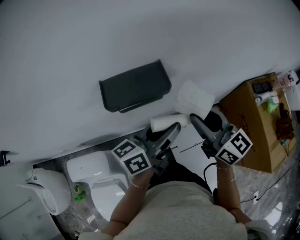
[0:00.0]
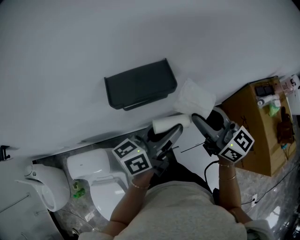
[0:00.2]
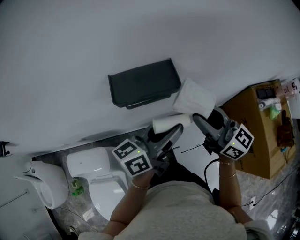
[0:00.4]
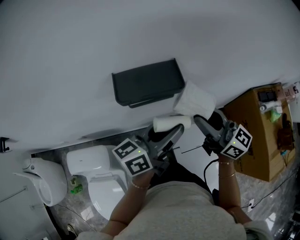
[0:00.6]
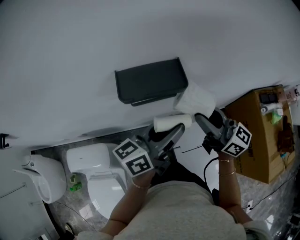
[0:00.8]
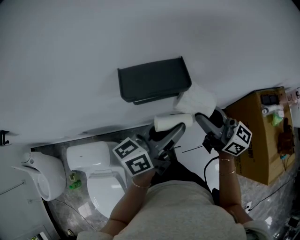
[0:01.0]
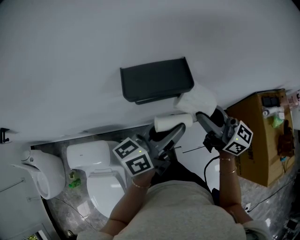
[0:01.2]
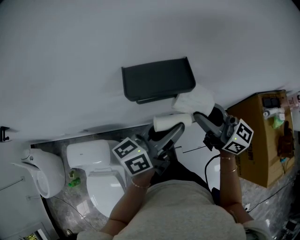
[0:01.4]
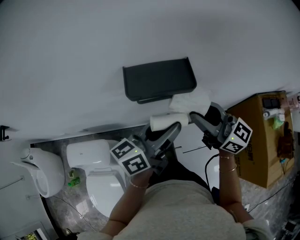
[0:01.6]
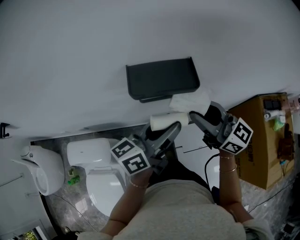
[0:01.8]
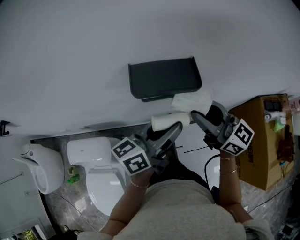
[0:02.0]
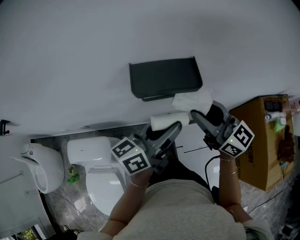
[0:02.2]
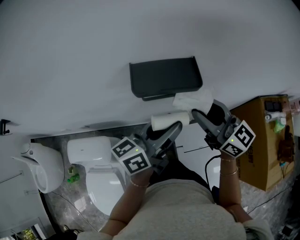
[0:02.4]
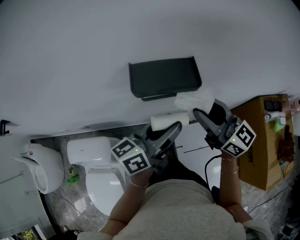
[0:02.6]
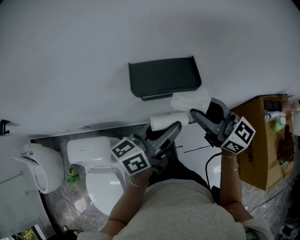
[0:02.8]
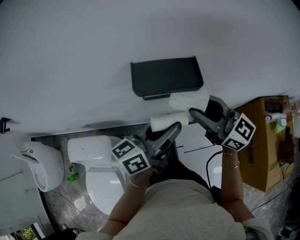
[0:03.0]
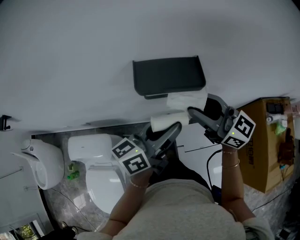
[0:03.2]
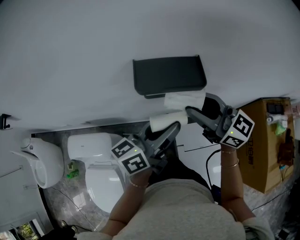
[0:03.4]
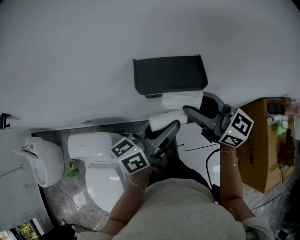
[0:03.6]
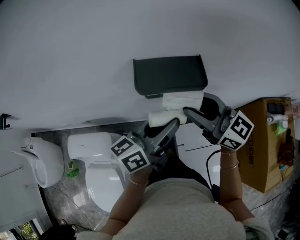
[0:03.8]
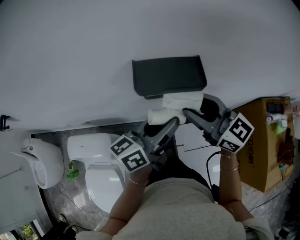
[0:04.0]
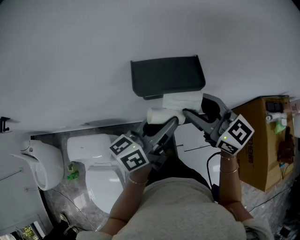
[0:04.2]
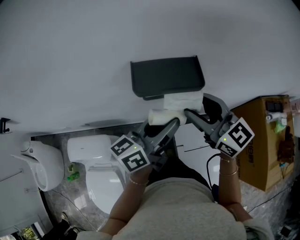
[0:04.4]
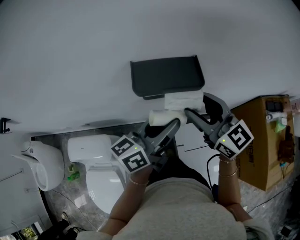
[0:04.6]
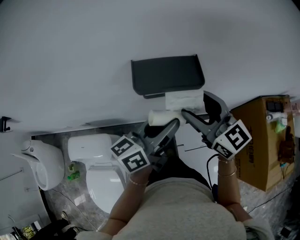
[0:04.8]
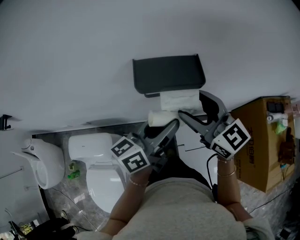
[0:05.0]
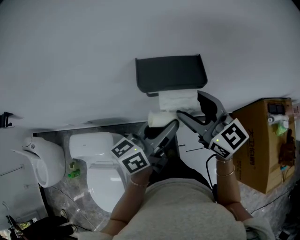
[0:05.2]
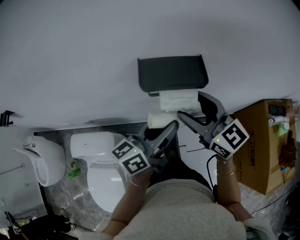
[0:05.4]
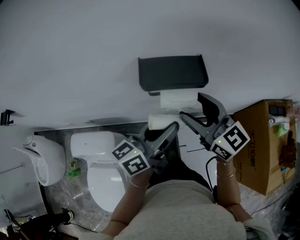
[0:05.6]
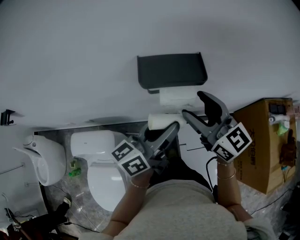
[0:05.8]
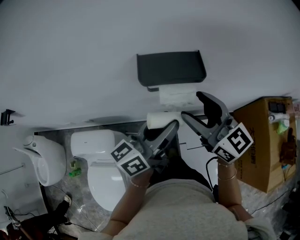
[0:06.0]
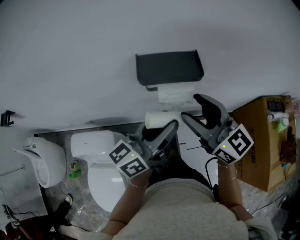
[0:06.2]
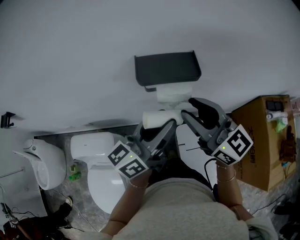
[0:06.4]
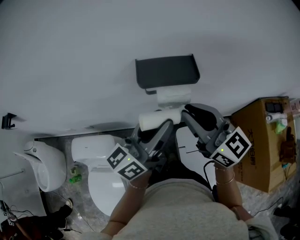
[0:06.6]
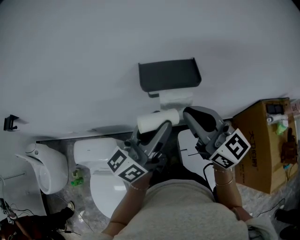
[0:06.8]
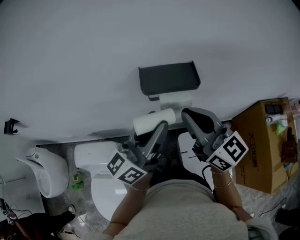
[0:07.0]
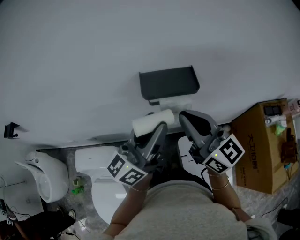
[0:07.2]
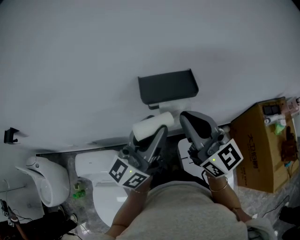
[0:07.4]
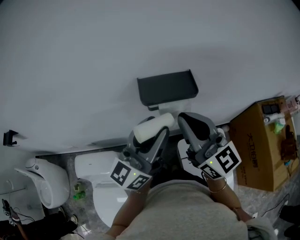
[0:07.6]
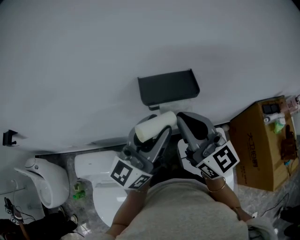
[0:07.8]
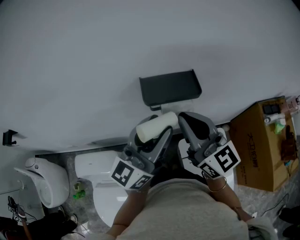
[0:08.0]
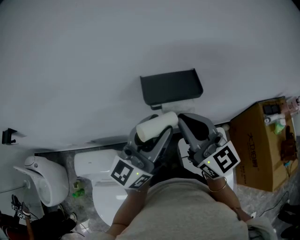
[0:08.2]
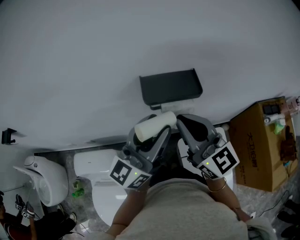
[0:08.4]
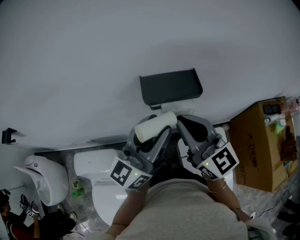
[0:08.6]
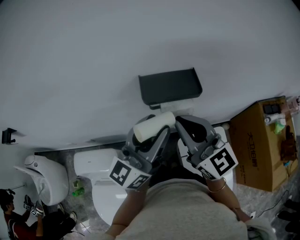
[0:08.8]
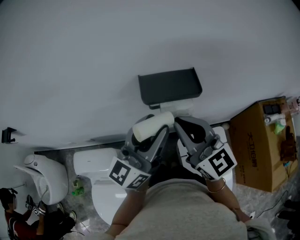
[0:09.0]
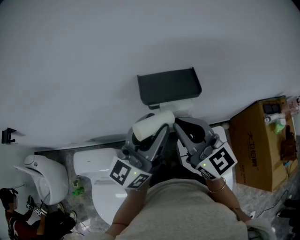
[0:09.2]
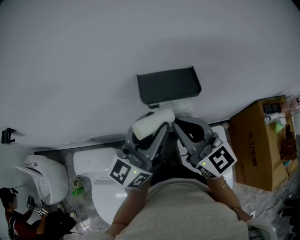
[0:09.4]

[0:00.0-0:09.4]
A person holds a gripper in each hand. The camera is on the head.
0:00.0 to 0:01.6: Both grippers move to the left, about 5 cm. The right gripper turns by roughly 20 degrees.
0:01.6 to 0:03.2: The grippers move only a little.
0:03.2 to 0:04.8: The right gripper opens up.
0:04.8 to 0:06.2: The left gripper shifts by about 5 cm; the right gripper ends up roughly 5 cm from where it was.
0:06.2 to 0:07.8: The right gripper moves roughly 5 cm, and closes its fingers. The left gripper moves upward, about 5 cm, and turns by some 30 degrees.
0:07.8 to 0:09.4: The grippers stay close to where they were, moving slightly.

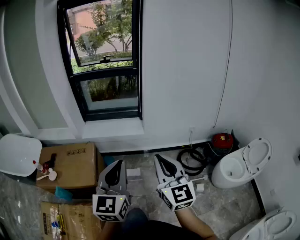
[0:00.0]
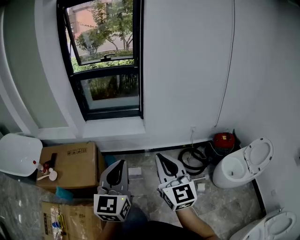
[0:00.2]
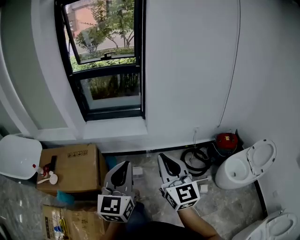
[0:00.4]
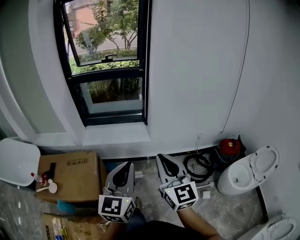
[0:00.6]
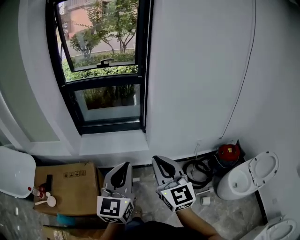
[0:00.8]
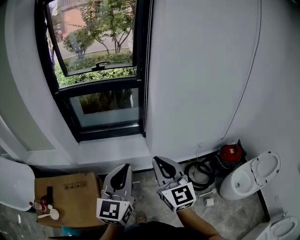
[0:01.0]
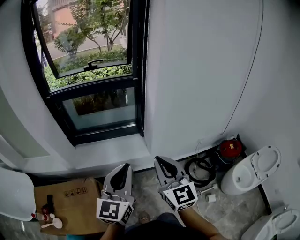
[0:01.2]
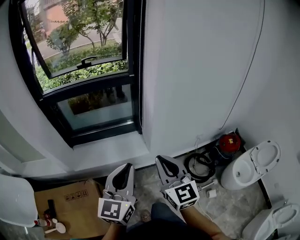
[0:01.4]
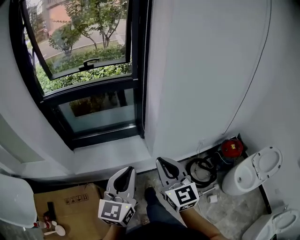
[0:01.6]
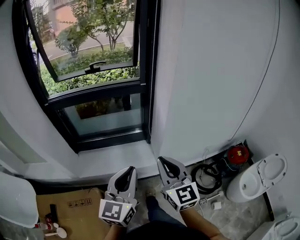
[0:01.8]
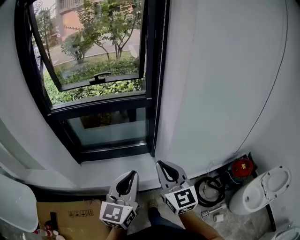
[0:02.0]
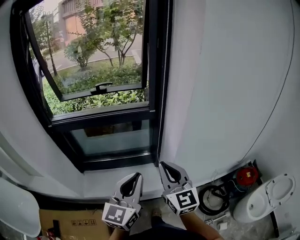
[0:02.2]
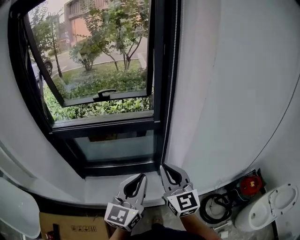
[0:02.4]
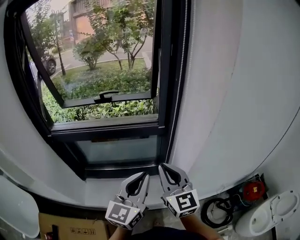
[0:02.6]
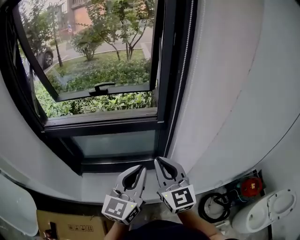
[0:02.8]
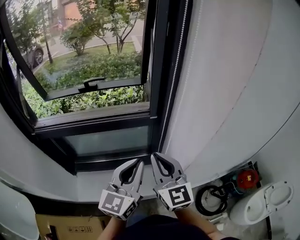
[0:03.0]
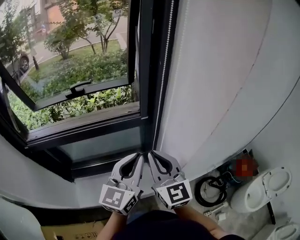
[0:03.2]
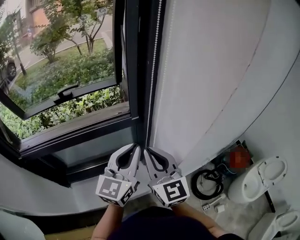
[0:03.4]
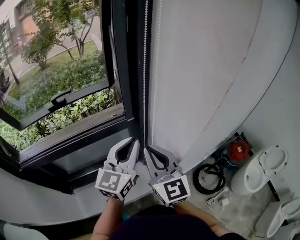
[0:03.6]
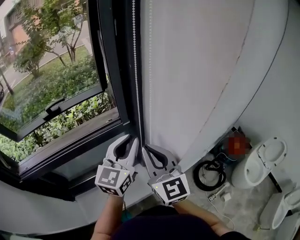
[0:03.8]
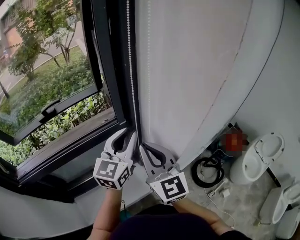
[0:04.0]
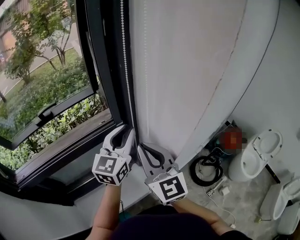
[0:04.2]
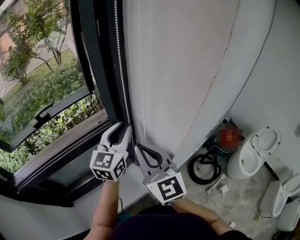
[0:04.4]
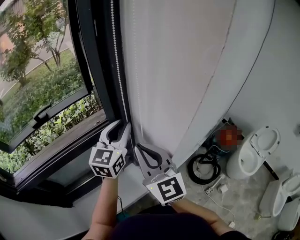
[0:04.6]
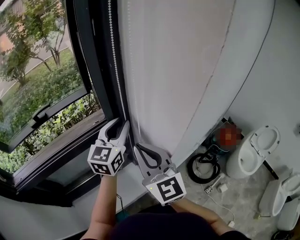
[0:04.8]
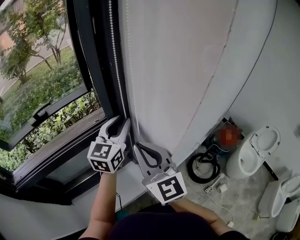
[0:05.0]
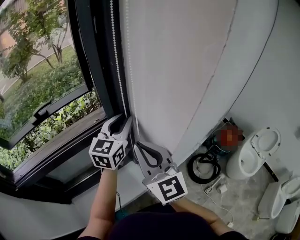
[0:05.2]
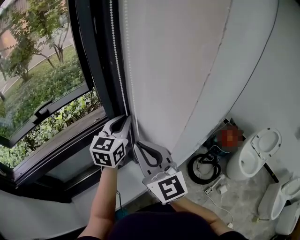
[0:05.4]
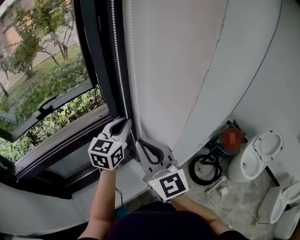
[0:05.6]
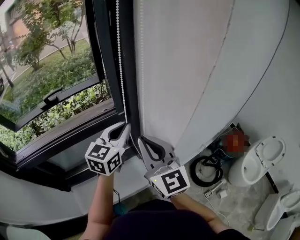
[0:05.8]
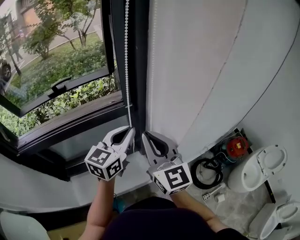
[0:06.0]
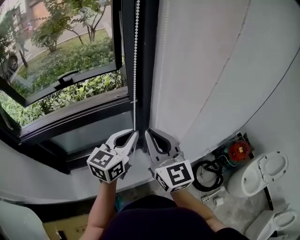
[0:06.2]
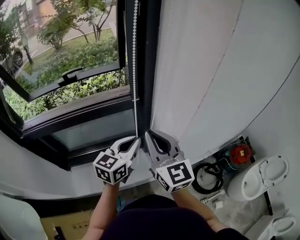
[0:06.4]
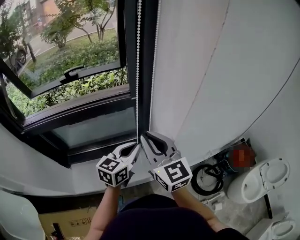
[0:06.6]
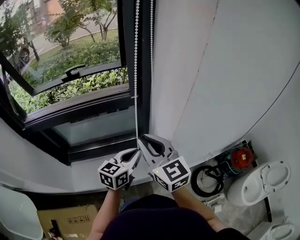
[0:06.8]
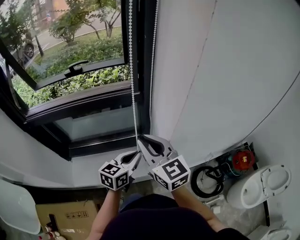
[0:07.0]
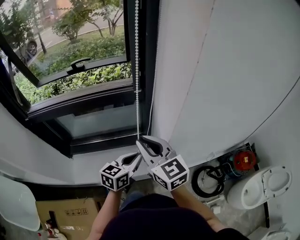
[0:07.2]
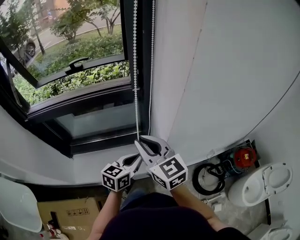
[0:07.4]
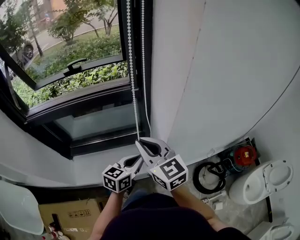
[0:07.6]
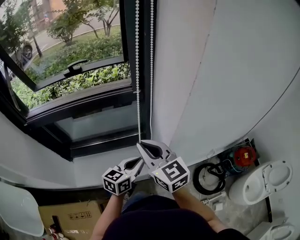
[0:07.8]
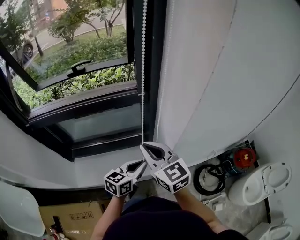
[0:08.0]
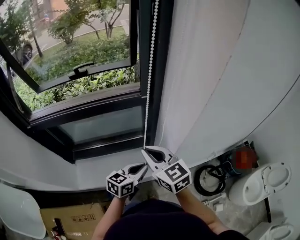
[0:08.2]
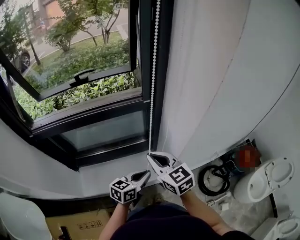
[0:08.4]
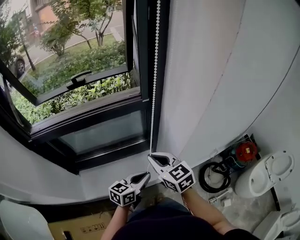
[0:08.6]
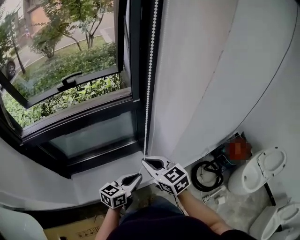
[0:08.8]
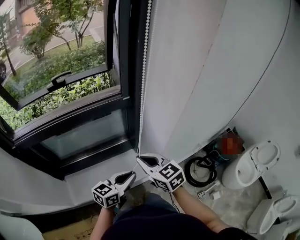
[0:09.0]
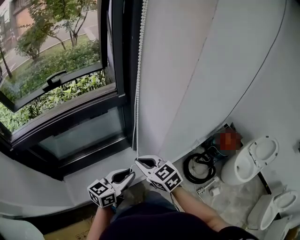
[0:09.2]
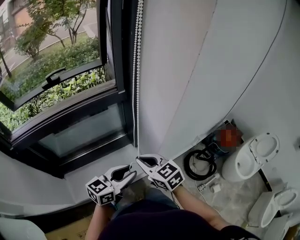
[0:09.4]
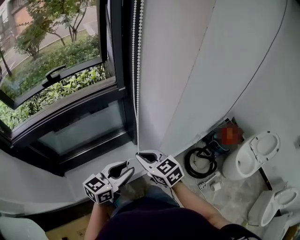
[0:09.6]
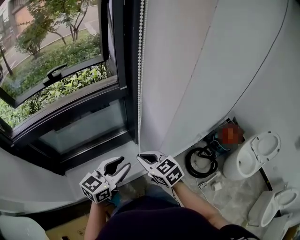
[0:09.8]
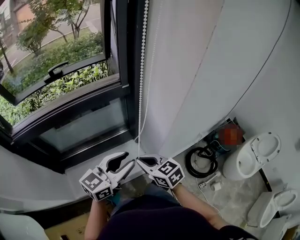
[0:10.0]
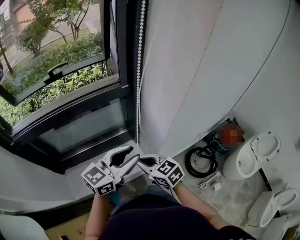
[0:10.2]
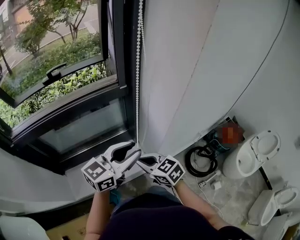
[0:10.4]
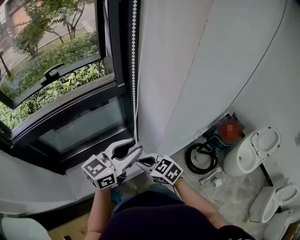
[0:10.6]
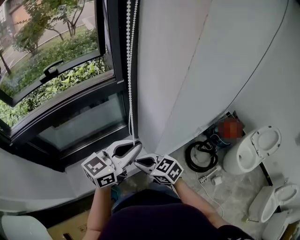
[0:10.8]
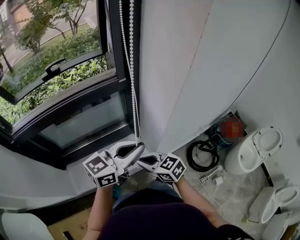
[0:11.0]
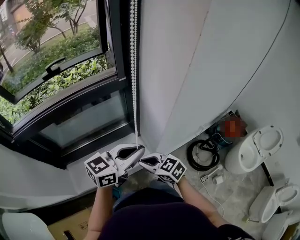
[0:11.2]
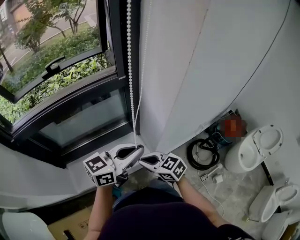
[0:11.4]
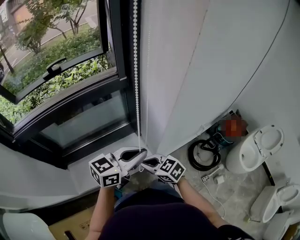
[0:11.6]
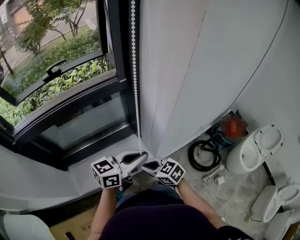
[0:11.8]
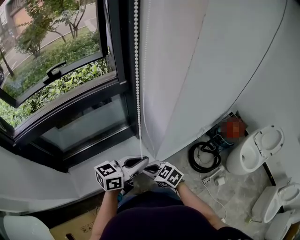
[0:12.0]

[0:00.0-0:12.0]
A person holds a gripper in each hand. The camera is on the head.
0:00.0 to 0:01.6: Both grippers are carried forward, about 40 cm.
0:01.6 to 0:03.0: The grippers both shift forward by approximately 35 cm.
0:03.0 to 0:04.4: The right gripper heads forward, covering roughly 5 cm. Meanwhile the left gripper is displaced forward by about 20 cm, and rotates about 20 degrees.
0:04.4 to 0:06.0: The left gripper moves backward, some 5 cm.
0:06.0 to 0:07.6: The left gripper goes roughly 20 cm downward and backward, and swivels roughly 20 degrees; the right gripper shifts roughly 10 cm downward and backward, and changes its angle by roughly 30 degrees.
0:07.6 to 0:09.0: The right gripper goes about 10 cm downward, while the left gripper is displaced to the left by roughly 5 cm.
0:09.0 to 0:10.4: The right gripper goes approximately 5 cm downward; the left gripper moves upward, some 15 cm, and opens its fingers.
0:10.4 to 0:12.0: Both grippers travel together downward, approximately 10 cm. The left gripper closes up.

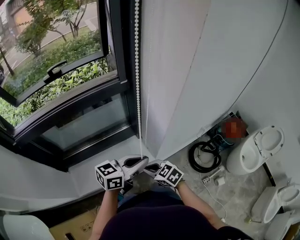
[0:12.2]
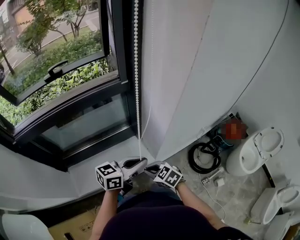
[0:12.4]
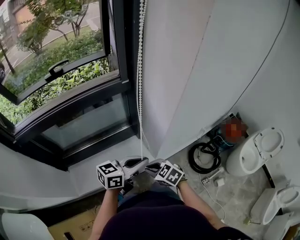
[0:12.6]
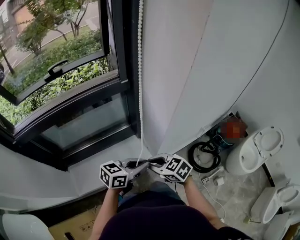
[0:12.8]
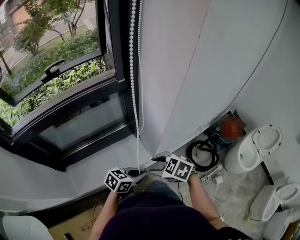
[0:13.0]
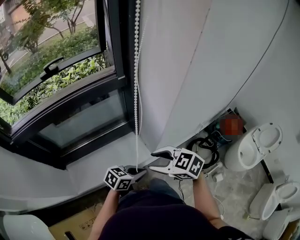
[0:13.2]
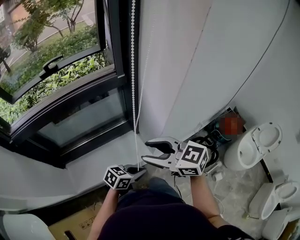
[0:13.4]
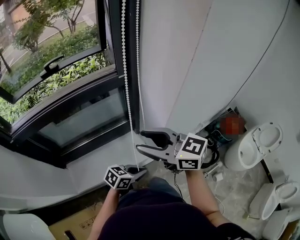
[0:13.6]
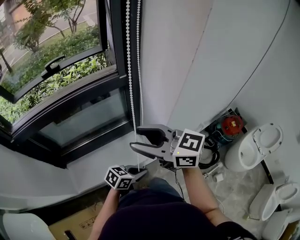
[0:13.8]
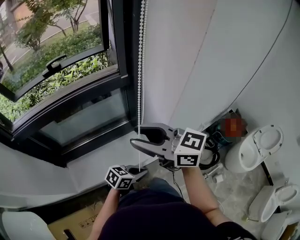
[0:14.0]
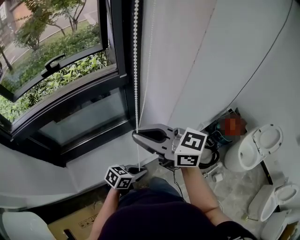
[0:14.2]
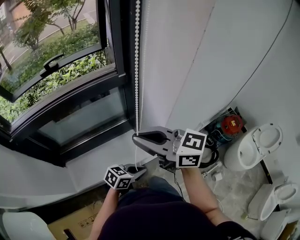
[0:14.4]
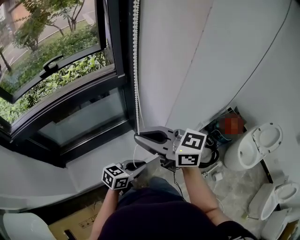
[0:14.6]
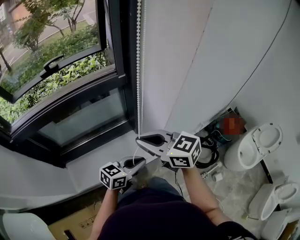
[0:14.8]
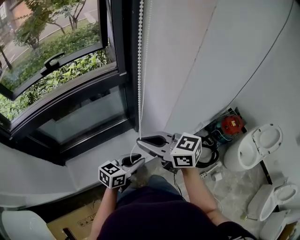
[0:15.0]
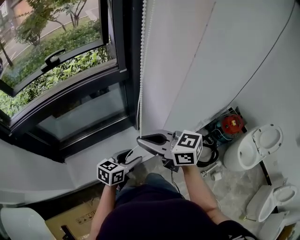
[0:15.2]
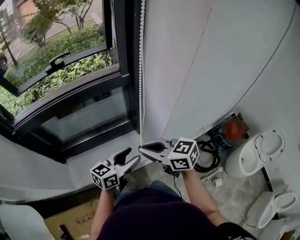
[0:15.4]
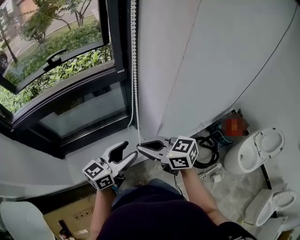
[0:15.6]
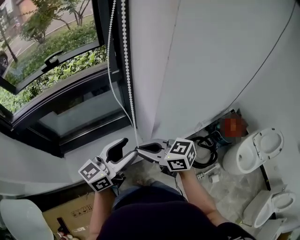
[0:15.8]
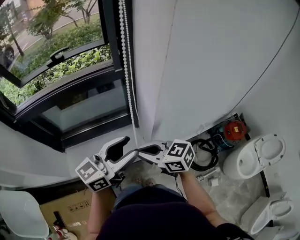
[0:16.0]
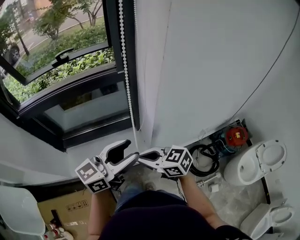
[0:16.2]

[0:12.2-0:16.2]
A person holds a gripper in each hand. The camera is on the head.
0:12.2 to 0:13.6: The left gripper is displaced downward by some 15 cm, and rotates roughly 30 degrees. Meanwhile the right gripper shifts approximately 25 cm upward, tilts its fingers approximately 30 degrees upward, and opens its fingers.
0:13.6 to 0:14.8: The left gripper travels upward by some 5 cm. The right gripper closes its fingers.
0:14.8 to 0:16.2: The right gripper shifts by roughly 15 cm. The left gripper moves upward, roughly 20 cm, swivels approximately 30 degrees, and opens.
